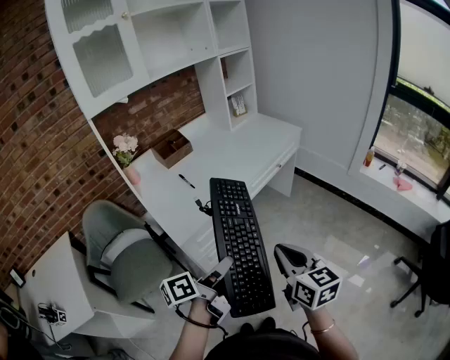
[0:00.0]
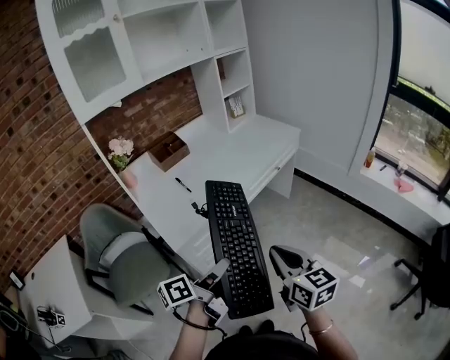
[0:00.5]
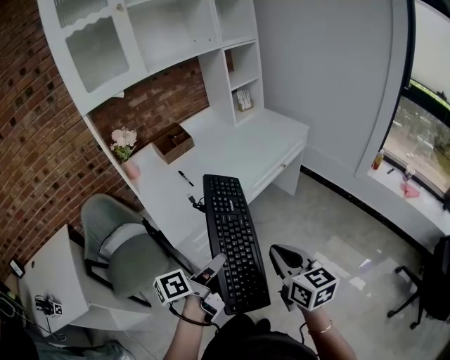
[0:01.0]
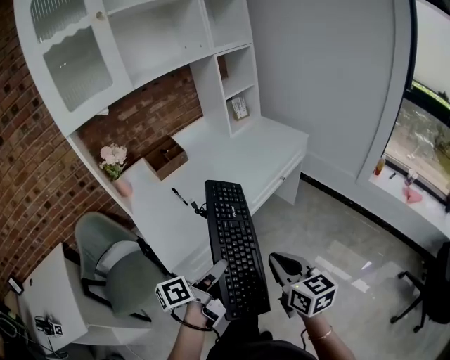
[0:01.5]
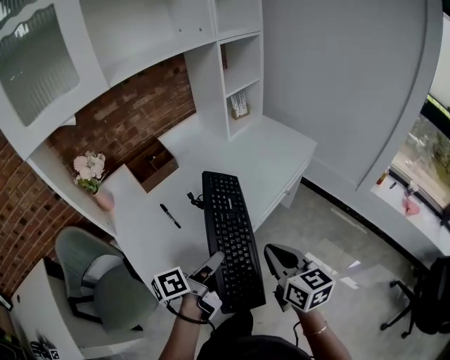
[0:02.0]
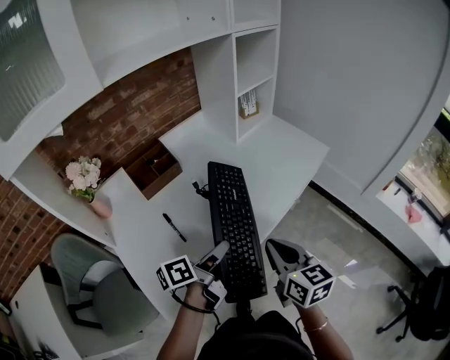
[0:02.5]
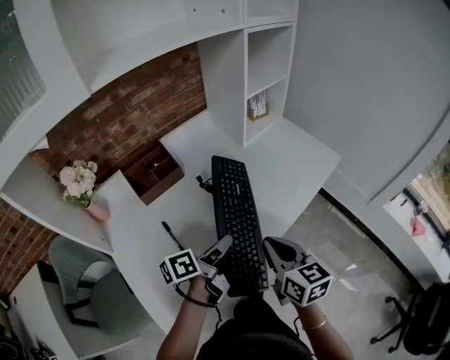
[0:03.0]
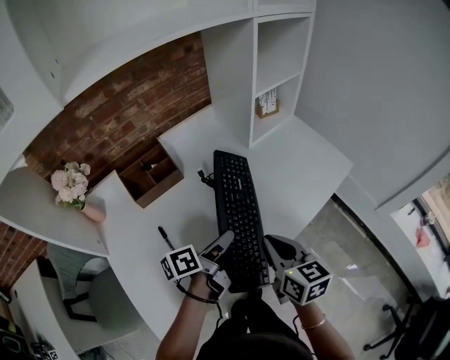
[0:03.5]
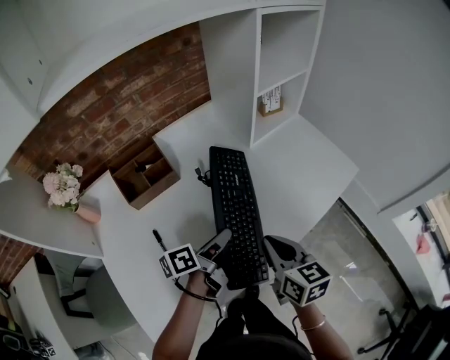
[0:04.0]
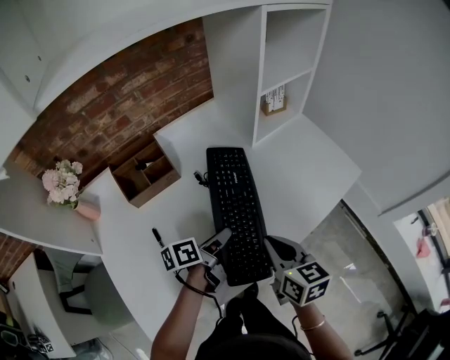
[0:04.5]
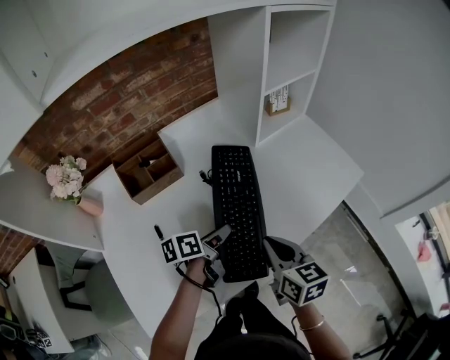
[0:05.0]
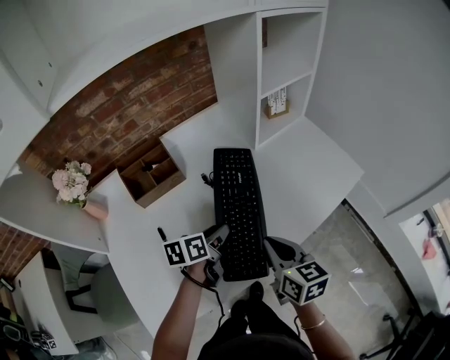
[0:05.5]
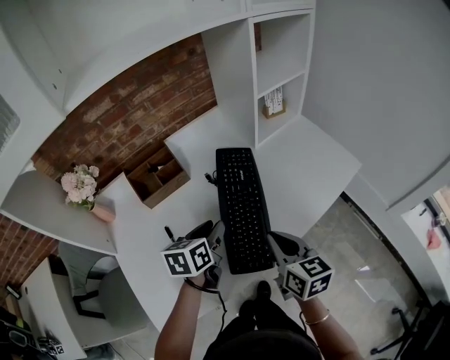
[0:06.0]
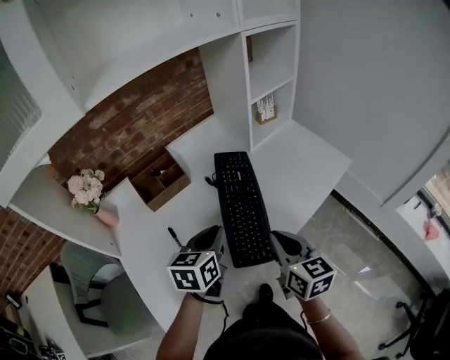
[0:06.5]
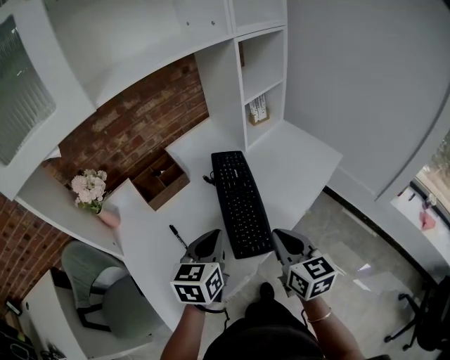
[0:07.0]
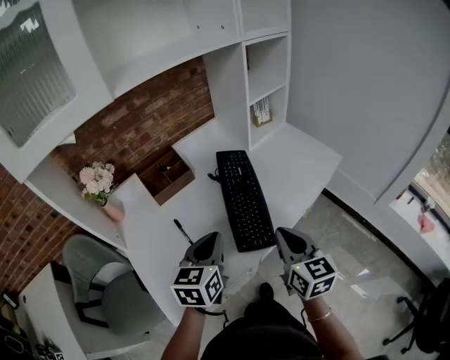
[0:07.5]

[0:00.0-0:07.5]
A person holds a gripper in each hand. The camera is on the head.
0:00.0 to 0:02.0: The two grippers go approximately 30 cm forward.
0:02.0 to 0:04.0: The two grippers go roughly 25 cm forward.
0:04.0 to 0:05.5: The left gripper swivels some 30 degrees.
0:05.5 to 0:07.5: The right gripper heads backward and upward, covering some 15 cm, and swivels some 20 degrees, while the left gripper goes approximately 20 cm upward and backward, rotates some 40 degrees, and closes.

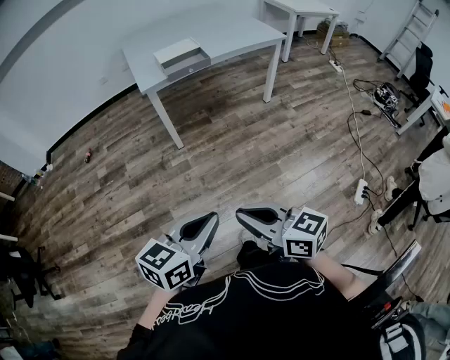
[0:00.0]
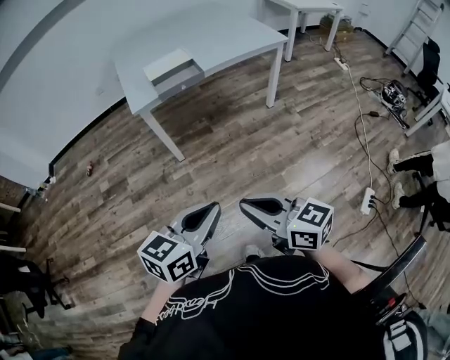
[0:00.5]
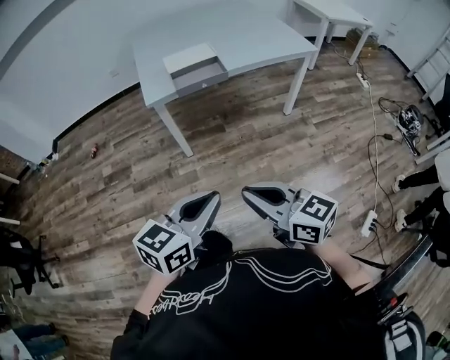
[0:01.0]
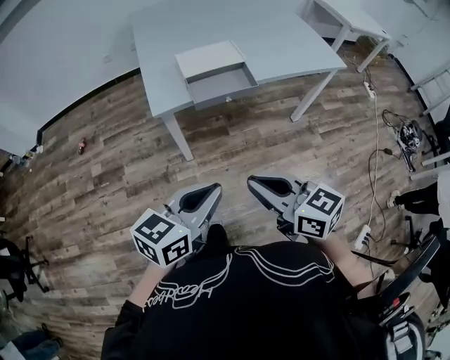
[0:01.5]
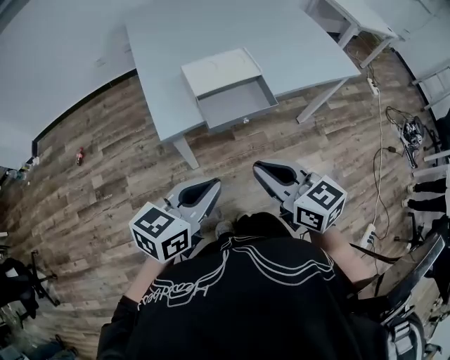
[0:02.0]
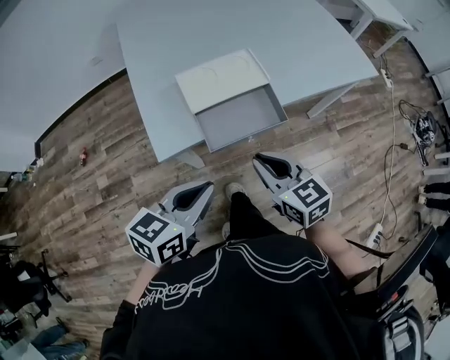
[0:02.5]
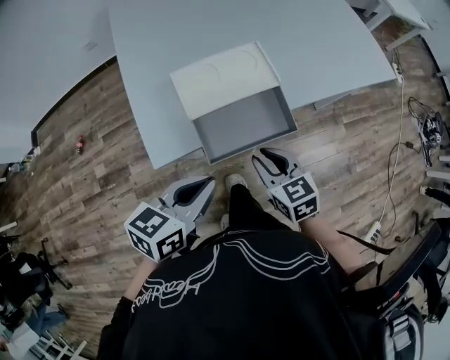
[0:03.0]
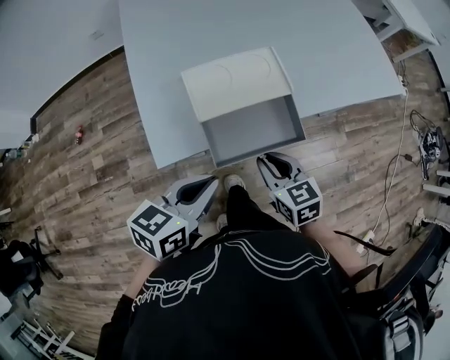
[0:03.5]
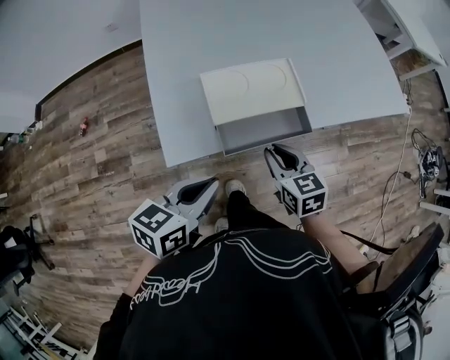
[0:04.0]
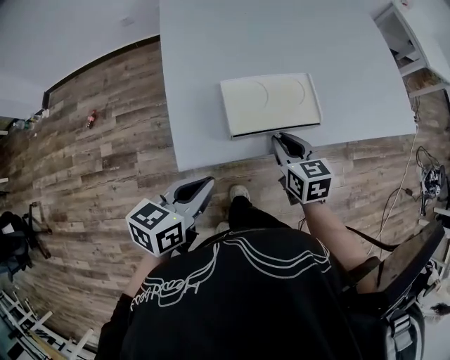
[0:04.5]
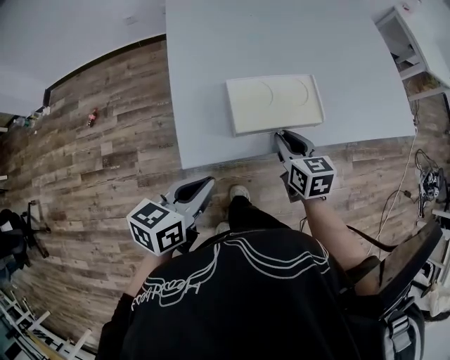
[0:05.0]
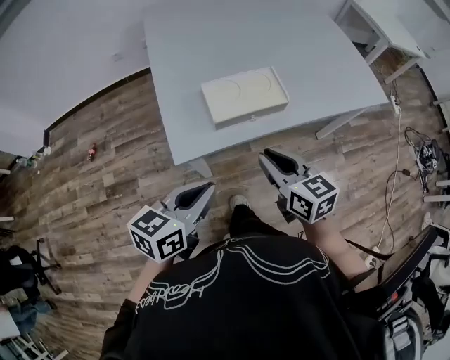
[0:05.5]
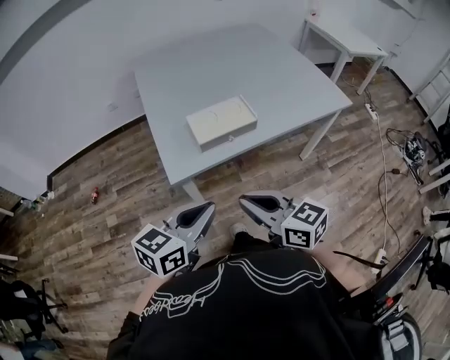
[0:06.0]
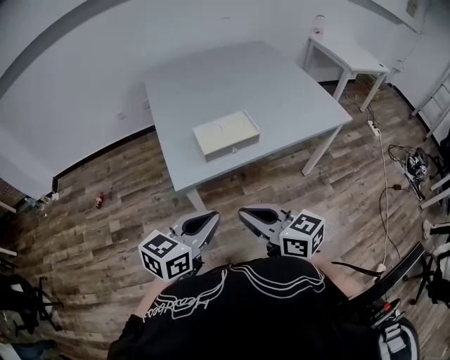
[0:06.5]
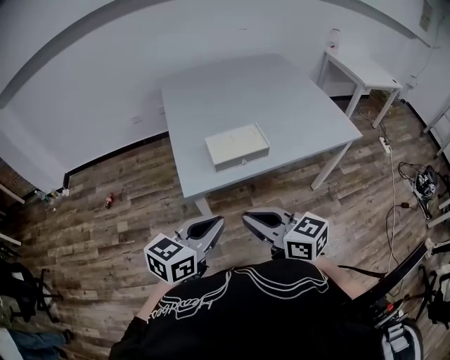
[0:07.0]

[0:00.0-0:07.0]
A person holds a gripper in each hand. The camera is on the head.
0:00.0 to 0:02.0: Both grippers are carried forward, some 60 cm.
0:02.0 to 0:03.5: The grippers both shift forward and downward by some 20 cm.
0:03.5 to 0:05.0: The right gripper heads forward, covering roughly 10 cm; the left gripper moves to the left, some 10 cm.
0:05.0 to 0:07.0: The left gripper is displaced backward, upward and to the right by about 25 cm, and rotates approximately 20 degrees. Meanwhile the right gripper shifts some 35 cm backward and upward, and rotates approximately 30 degrees.

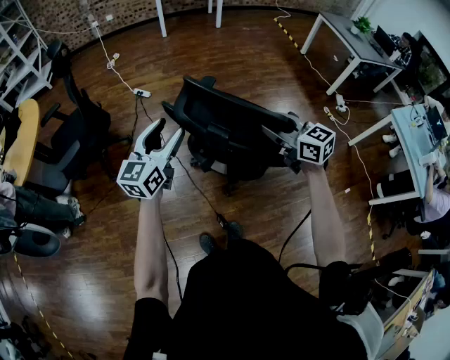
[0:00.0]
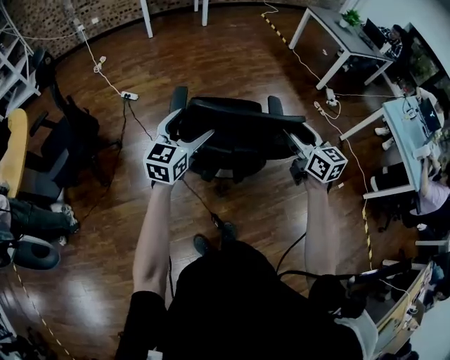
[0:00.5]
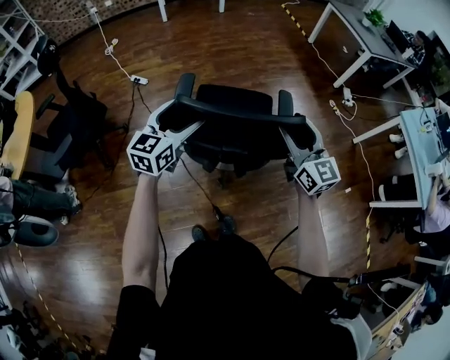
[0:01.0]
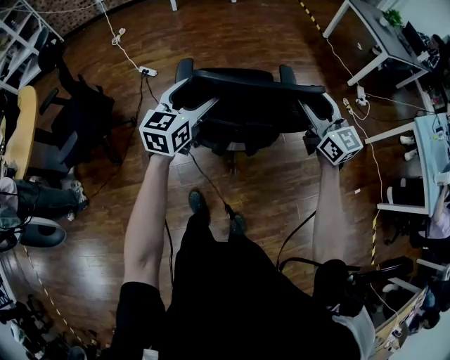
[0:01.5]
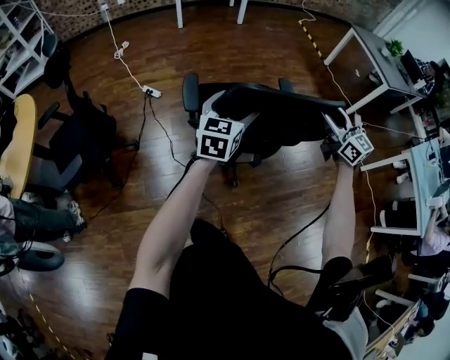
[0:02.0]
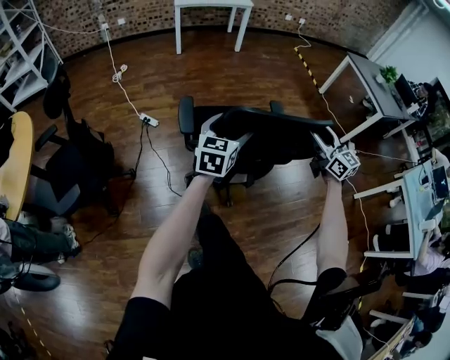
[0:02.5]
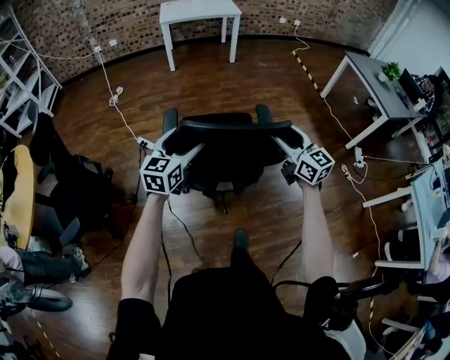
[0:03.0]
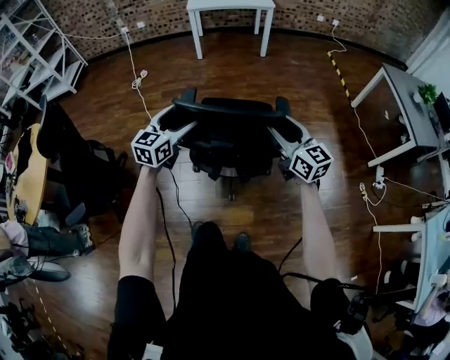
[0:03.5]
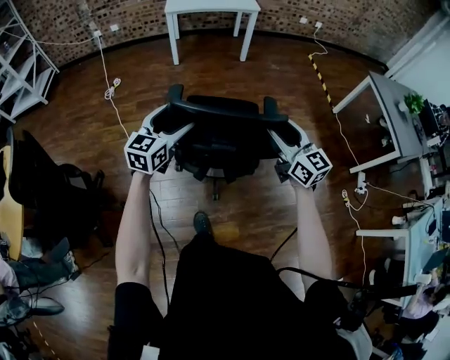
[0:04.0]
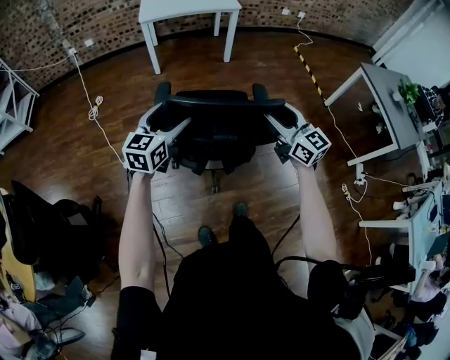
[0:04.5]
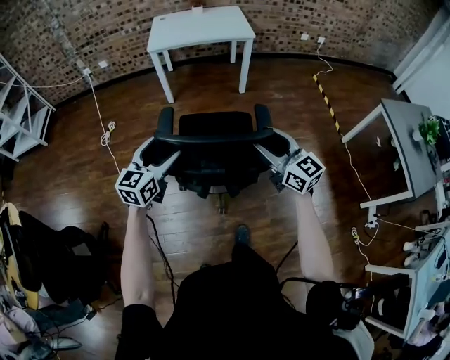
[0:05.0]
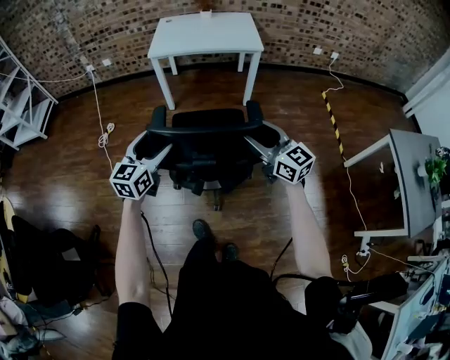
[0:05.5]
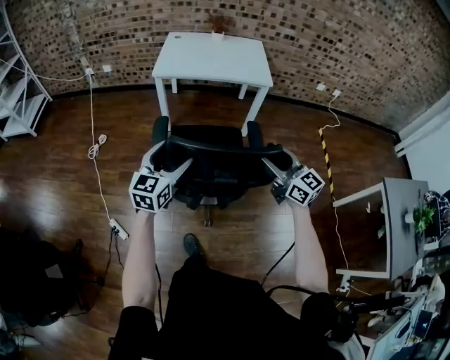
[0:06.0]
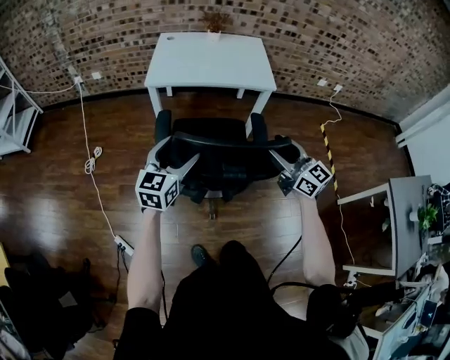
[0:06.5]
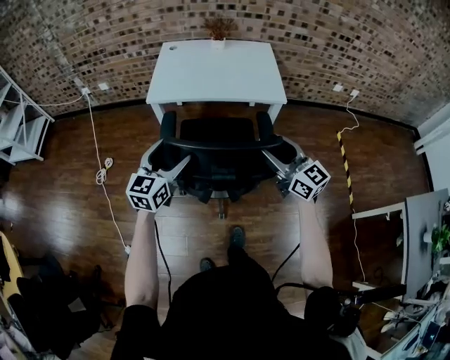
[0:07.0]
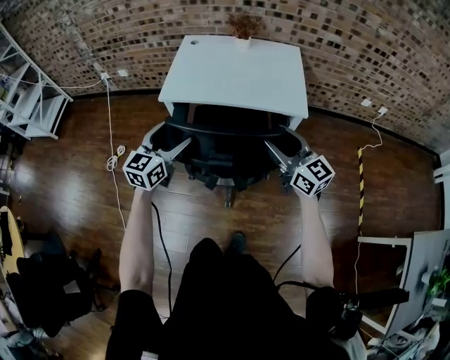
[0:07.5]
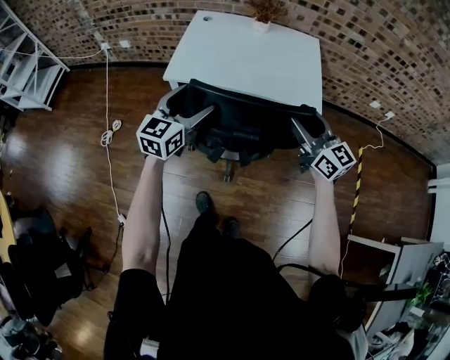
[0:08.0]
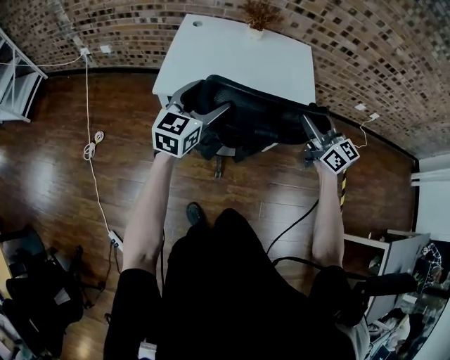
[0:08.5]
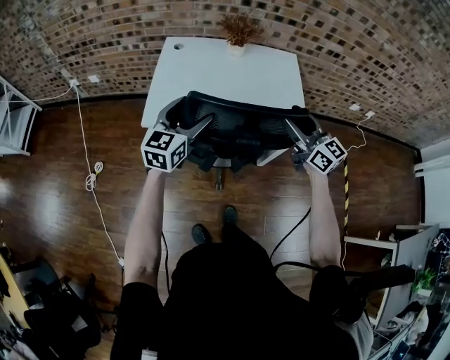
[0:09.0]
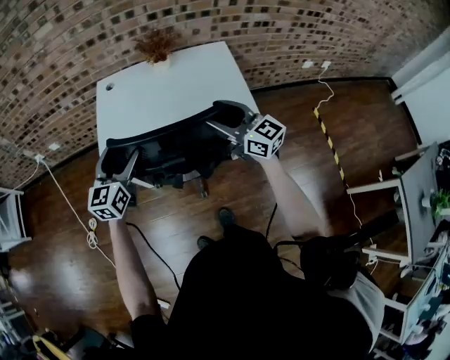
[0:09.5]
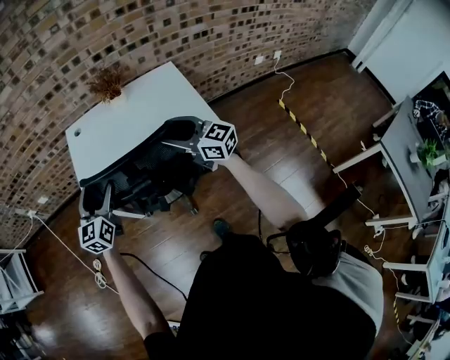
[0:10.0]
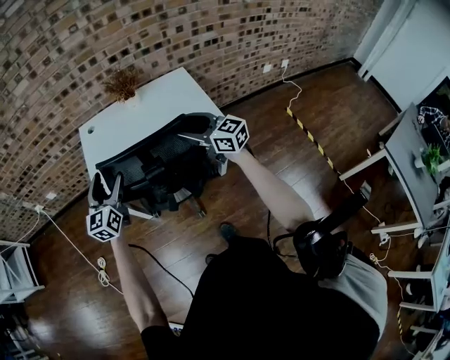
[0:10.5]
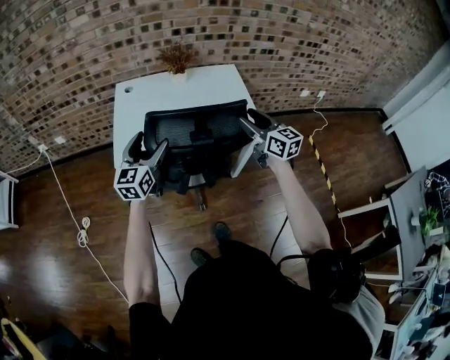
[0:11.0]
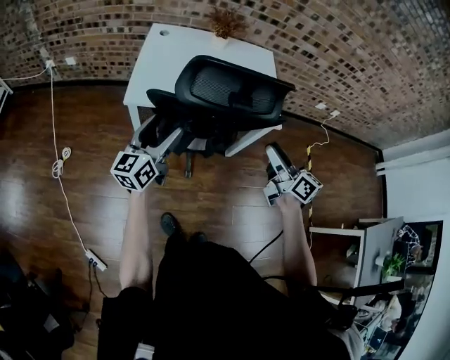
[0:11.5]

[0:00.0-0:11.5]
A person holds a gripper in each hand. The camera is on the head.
0:00.0 to 0:02.0: Both grippers move forward, roughly 35 cm. The left gripper turns by some 20 degrees.
0:02.0 to 0:04.0: The two grippers travel together, forward, roughly 50 cm.
0:04.0 to 0:06.0: Both grippers are carried forward, some 60 cm.
0:06.0 to 0:07.5: The two grippers travel together, forward, roughly 40 cm.
0:07.5 to 0:09.5: The two grippers go about 20 cm forward.
0:09.5 to 0:11.5: The left gripper travels backward and to the left by some 15 cm, and rotates about 20 degrees. Meanwhile the right gripper heads backward, covering about 15 cm, and turns by approximately 30 degrees.

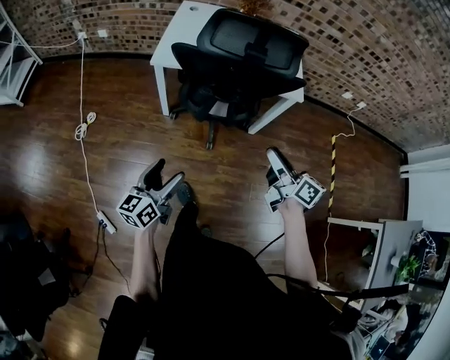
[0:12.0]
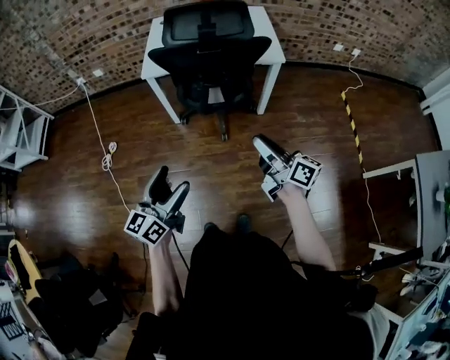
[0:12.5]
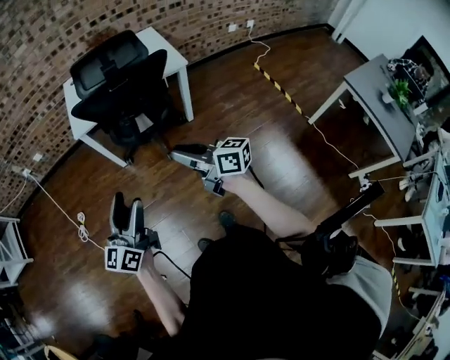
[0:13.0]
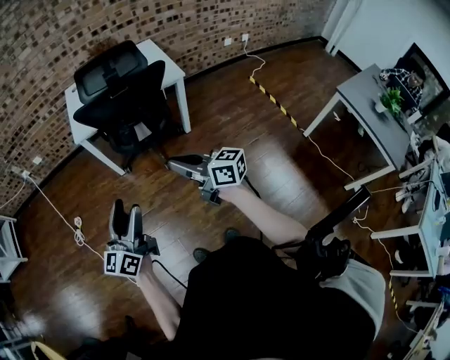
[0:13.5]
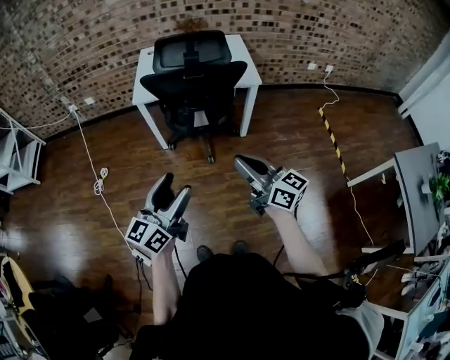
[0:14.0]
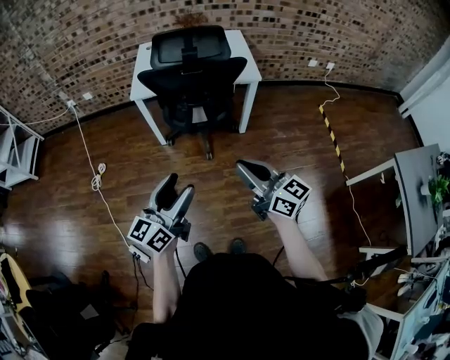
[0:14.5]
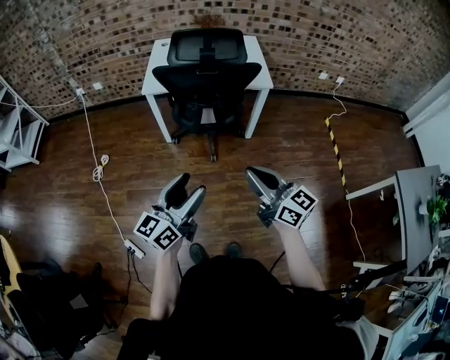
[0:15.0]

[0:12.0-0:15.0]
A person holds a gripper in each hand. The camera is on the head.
0:12.0 to 0:13.5: The right gripper is displaced backward by some 30 cm, and closes up. Meanwhile the left gripper travels backward and upward by roughly 35 cm, and turns by roughly 20 degrees.
0:13.5 to 0:15.0: The left gripper shifts by some 5 cm, while the right gripper changes place by roughly 5 cm.
